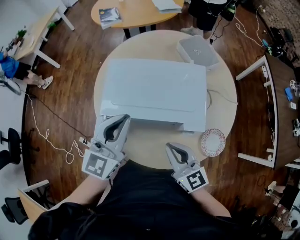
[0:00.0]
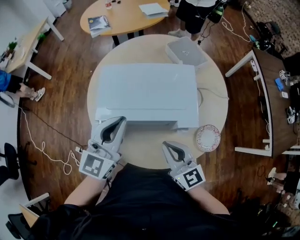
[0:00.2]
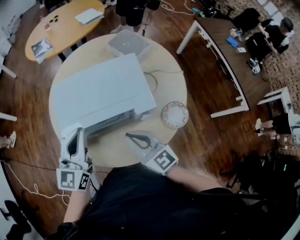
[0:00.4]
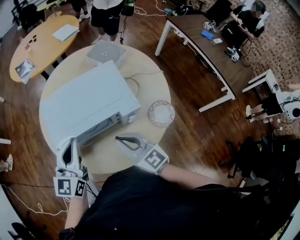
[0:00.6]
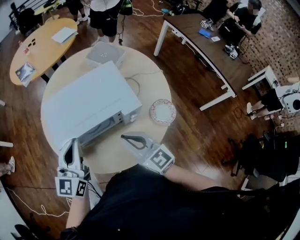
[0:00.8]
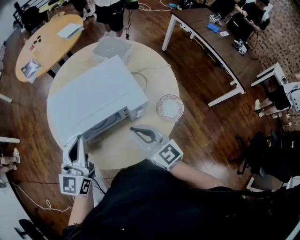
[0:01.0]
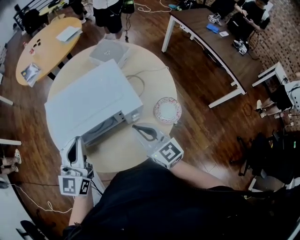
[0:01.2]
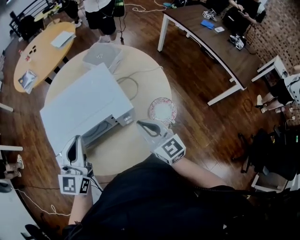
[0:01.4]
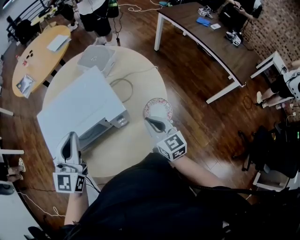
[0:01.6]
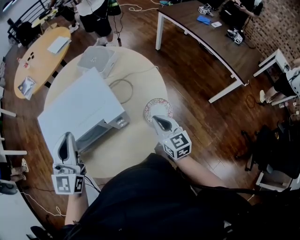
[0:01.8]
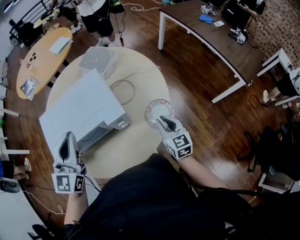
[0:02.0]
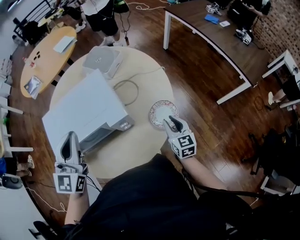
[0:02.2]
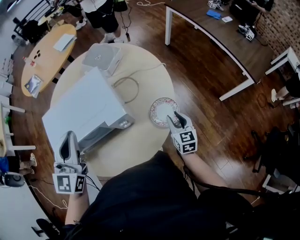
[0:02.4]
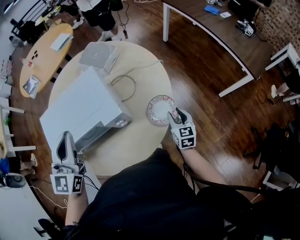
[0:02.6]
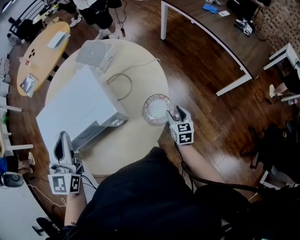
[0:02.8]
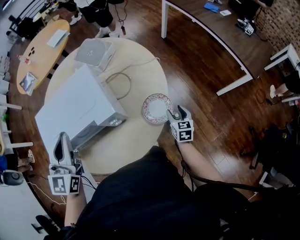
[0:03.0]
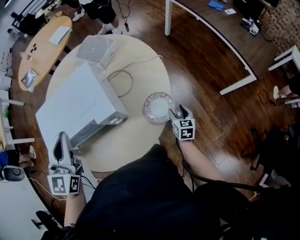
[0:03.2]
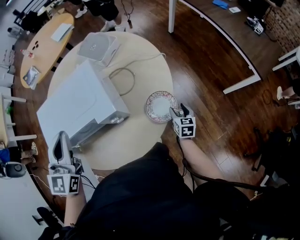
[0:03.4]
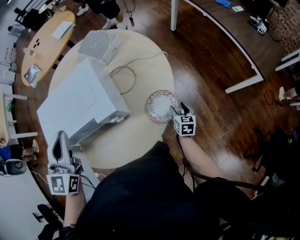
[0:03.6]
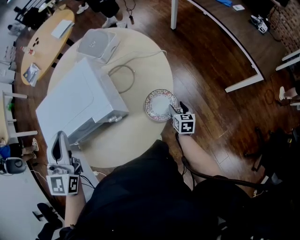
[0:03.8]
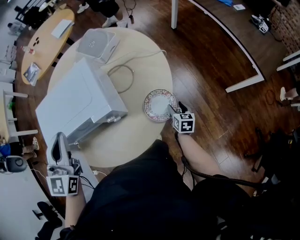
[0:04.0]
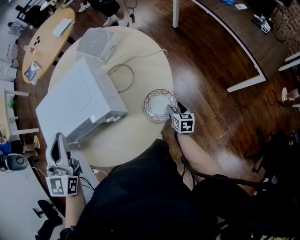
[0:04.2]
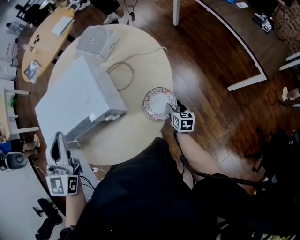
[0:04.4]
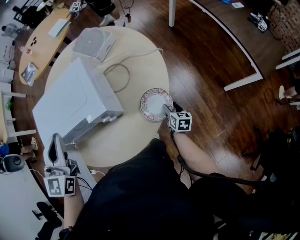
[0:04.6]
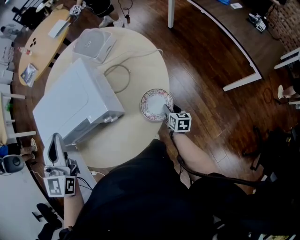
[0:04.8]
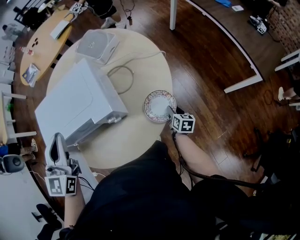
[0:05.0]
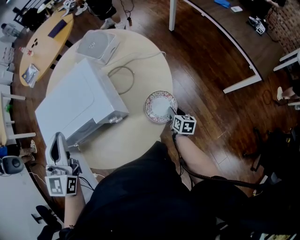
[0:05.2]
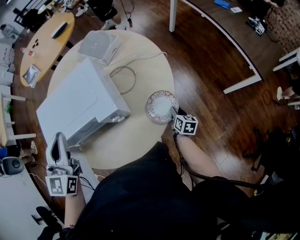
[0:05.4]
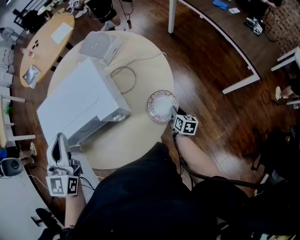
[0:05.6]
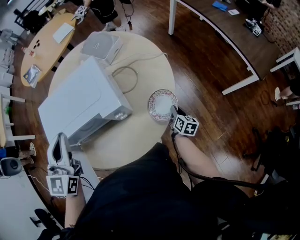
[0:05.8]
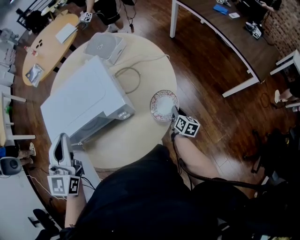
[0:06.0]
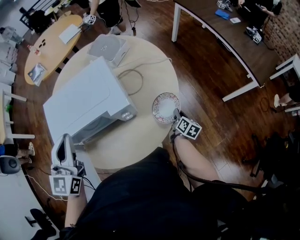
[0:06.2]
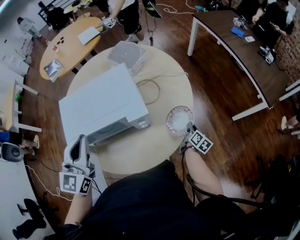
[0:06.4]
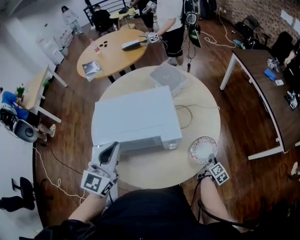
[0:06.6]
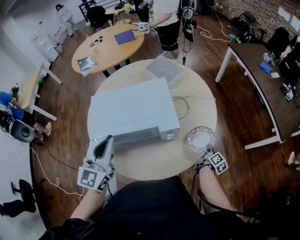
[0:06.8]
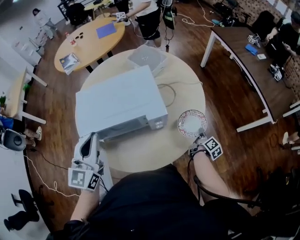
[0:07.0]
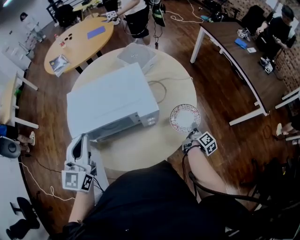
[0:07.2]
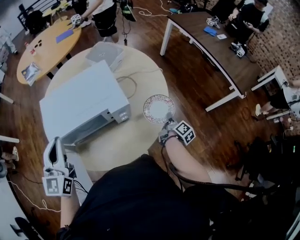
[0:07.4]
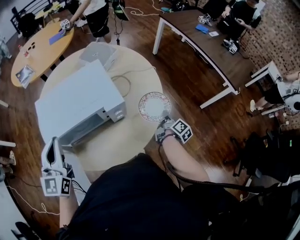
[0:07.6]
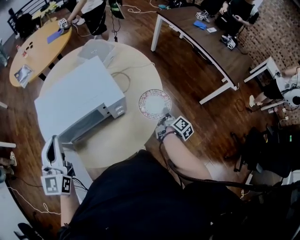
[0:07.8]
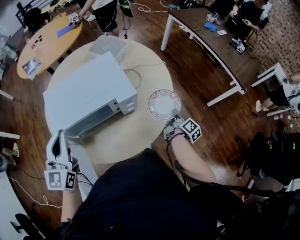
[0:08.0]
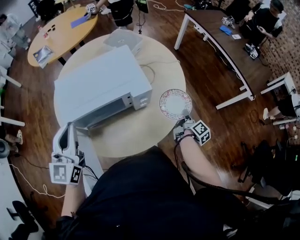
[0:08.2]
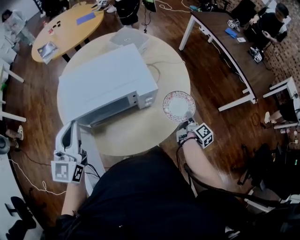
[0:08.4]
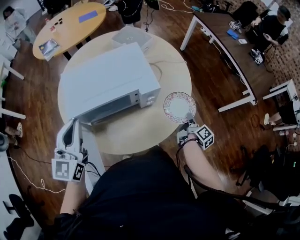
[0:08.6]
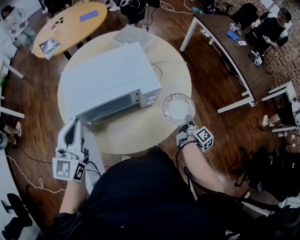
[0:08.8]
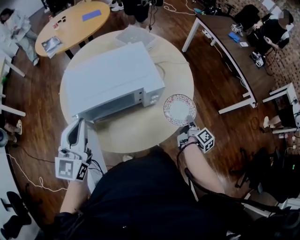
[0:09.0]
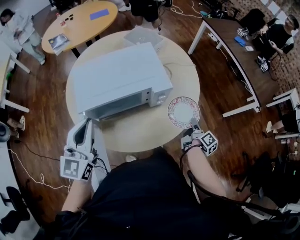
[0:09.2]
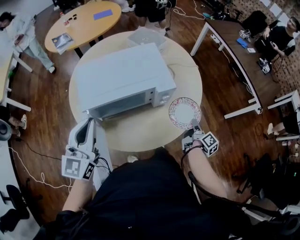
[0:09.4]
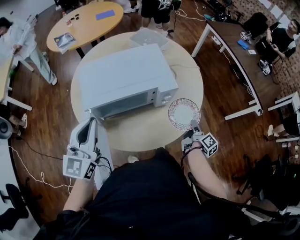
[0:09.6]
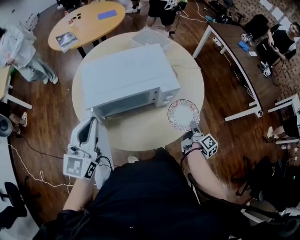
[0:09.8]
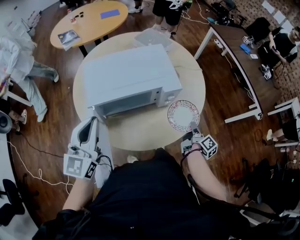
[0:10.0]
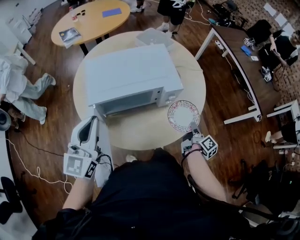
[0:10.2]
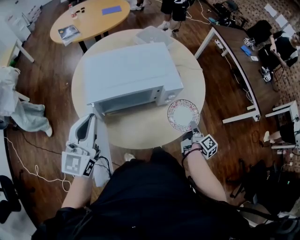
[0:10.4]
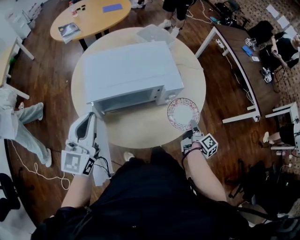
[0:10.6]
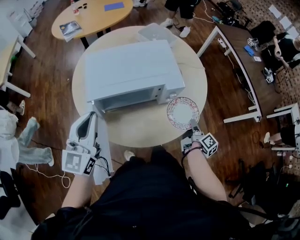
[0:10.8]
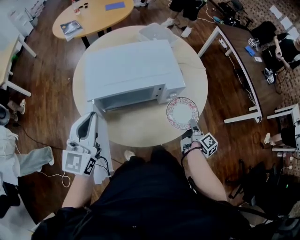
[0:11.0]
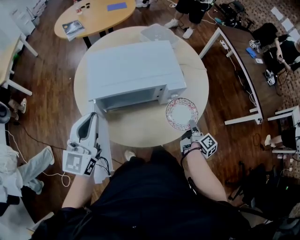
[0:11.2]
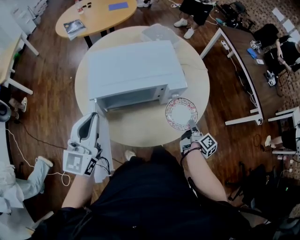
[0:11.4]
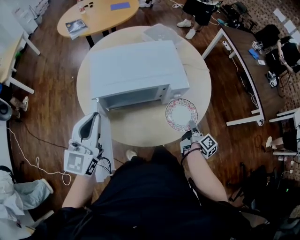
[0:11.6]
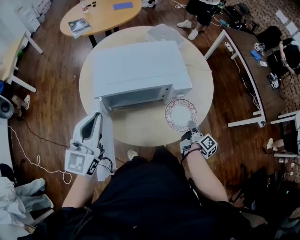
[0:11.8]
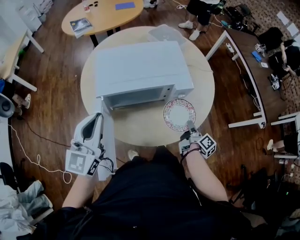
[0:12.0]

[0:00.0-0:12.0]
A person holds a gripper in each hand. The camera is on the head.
0.0 to 1.6 s: The left gripper shifts by roughly 5 cm, while the right gripper ends up roughly 20 cm from where it was, and changes its angle by some 40 degrees.
1.6 to 3.0 s: The right gripper shifts some 25 cm downward and to the right, changes its angle by roughly 30 degrees, and opens up.
3.0 to 4.4 s: The right gripper heads downward, covering roughly 5 cm.
4.4 to 6.0 s: The left gripper is displaced to the left by approximately 5 cm. The right gripper changes place by approximately 5 cm, swivels some 20 degrees, and closes its fingers.
6.0 to 7.6 s: The right gripper goes some 5 cm upward, and changes its angle by about 40 degrees; the left gripper shifts approximately 5 cm to the left.
7.6 to 9.0 s: The right gripper is displaced backward by roughly 5 cm.
9.0 to 10.4 s: The grippers move only a little.
10.4 to 12.0 s: The right gripper travels to the left by approximately 5 cm.

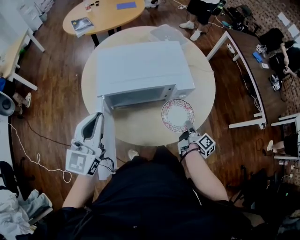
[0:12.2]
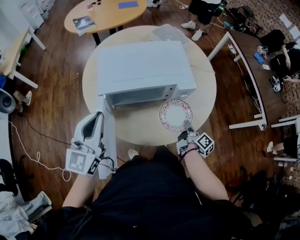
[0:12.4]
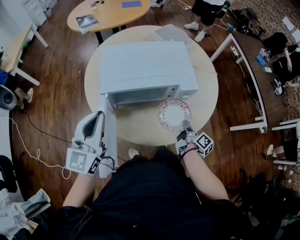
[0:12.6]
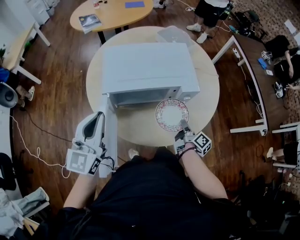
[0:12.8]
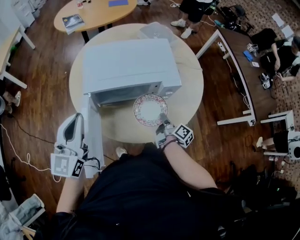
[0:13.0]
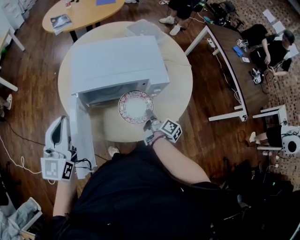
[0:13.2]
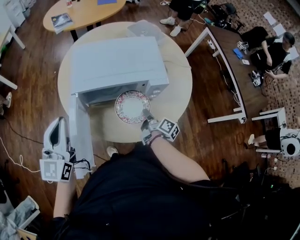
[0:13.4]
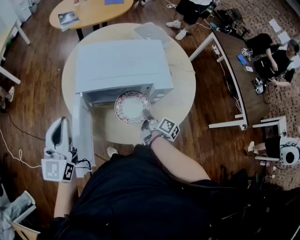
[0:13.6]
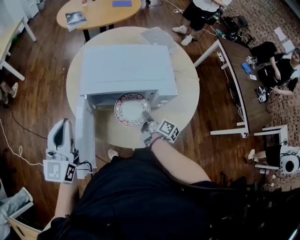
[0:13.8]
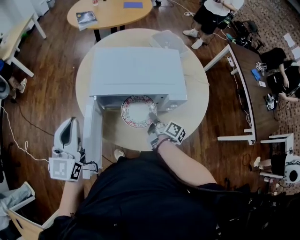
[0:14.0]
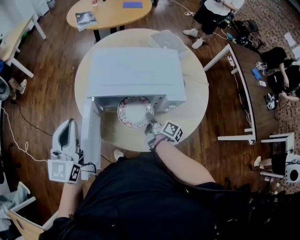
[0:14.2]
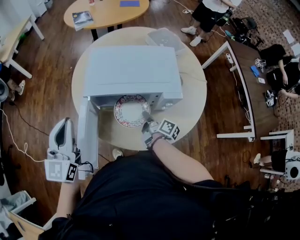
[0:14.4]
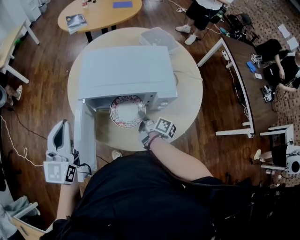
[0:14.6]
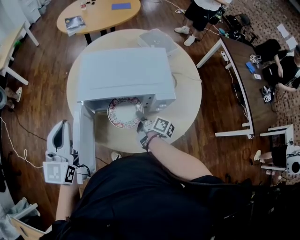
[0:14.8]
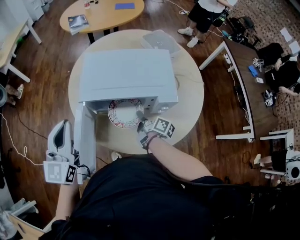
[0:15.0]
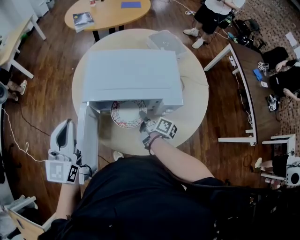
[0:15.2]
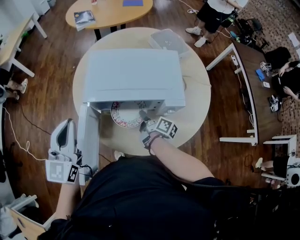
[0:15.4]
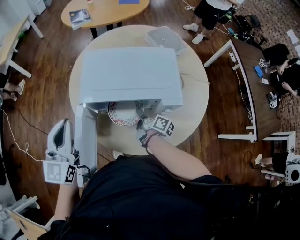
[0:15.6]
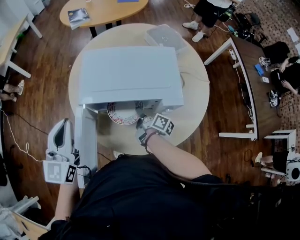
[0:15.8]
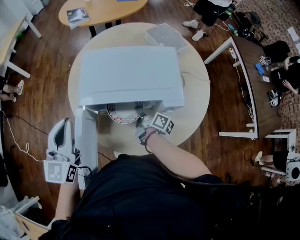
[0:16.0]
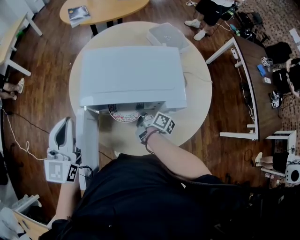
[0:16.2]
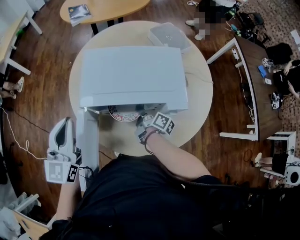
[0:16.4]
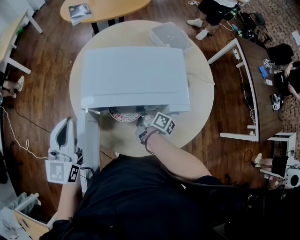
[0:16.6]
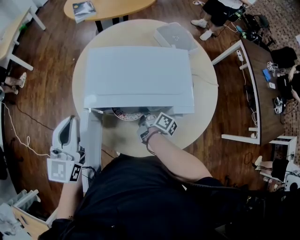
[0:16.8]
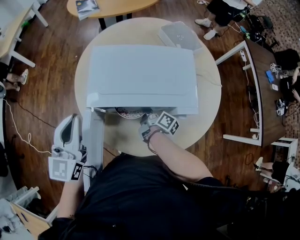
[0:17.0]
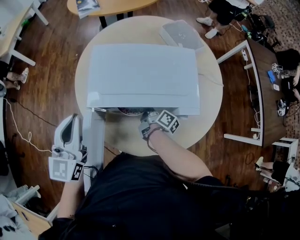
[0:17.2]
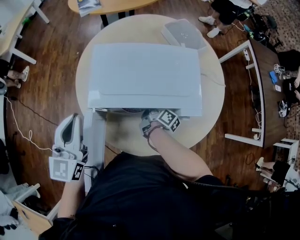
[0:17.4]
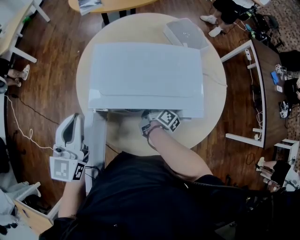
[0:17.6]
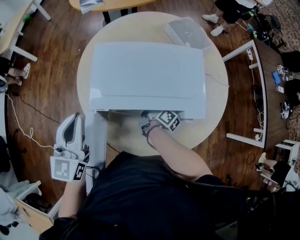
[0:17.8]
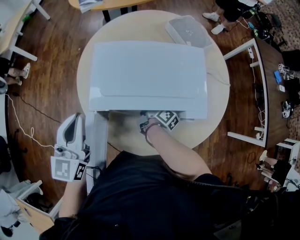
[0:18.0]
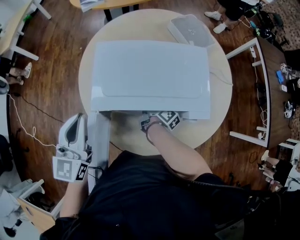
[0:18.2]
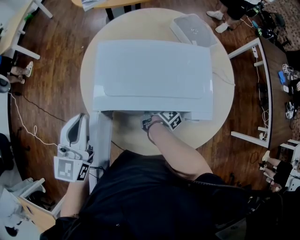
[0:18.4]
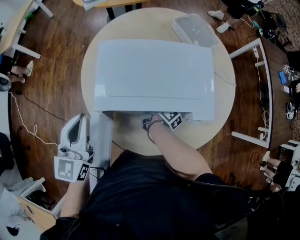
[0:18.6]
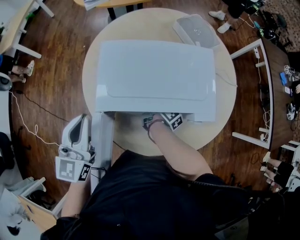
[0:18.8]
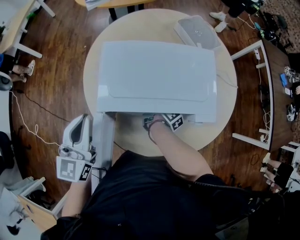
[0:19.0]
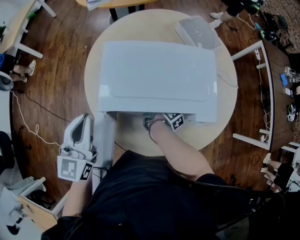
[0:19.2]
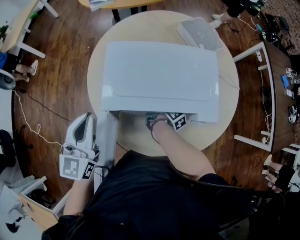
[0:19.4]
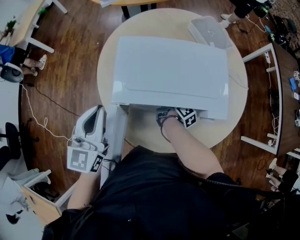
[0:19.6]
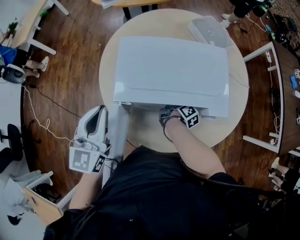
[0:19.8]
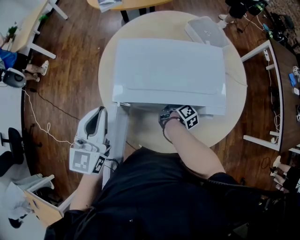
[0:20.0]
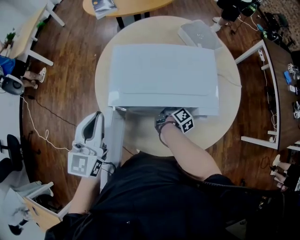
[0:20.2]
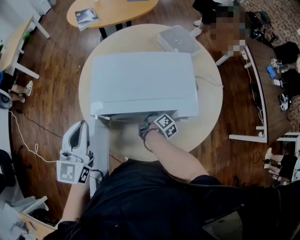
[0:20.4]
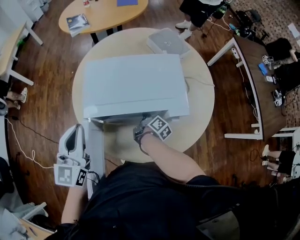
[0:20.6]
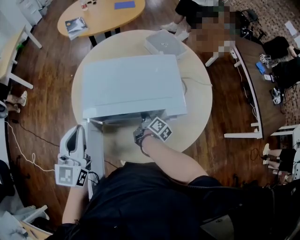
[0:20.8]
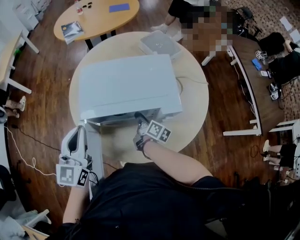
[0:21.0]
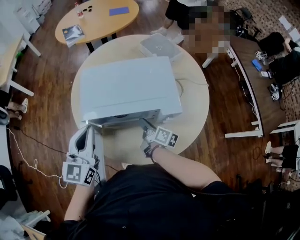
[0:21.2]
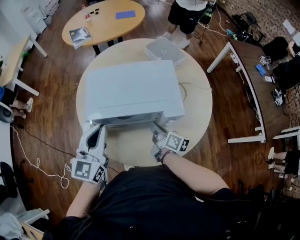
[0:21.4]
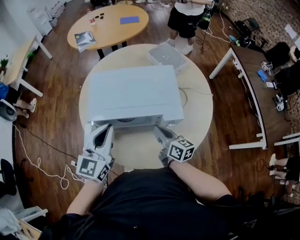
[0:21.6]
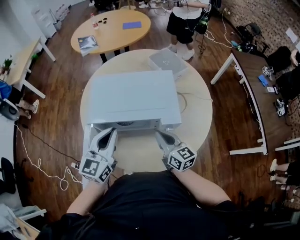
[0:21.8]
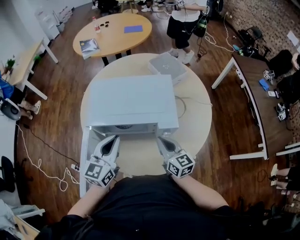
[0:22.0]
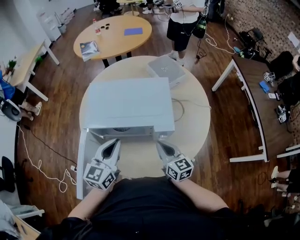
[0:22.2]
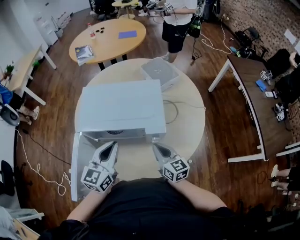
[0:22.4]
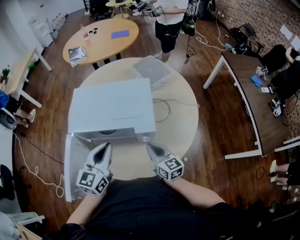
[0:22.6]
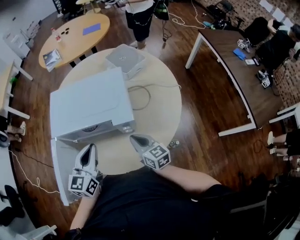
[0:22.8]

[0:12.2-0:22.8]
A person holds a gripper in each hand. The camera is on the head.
12.2 to 13.8 s: The right gripper is displaced to the left and forward by approximately 15 cm, and rotates roughly 20 degrees. Meanwhile the left gripper ends up about 5 cm from where it was.
13.8 to 15.2 s: The right gripper changes place by some 5 cm.
15.2 to 16.8 s: The grippers both shift forward by about 5 cm.
16.8 to 18.2 s: The right gripper moves roughly 5 cm.
18.2 to 19.8 s: The grippers move only a little.
19.8 to 21.2 s: The left gripper moves to the right, roughly 10 cm, while the right gripper moves backward and upward, some 10 cm, and rotates about 30 degrees.
21.2 to 22.8 s: The left gripper travels to the right by approximately 15 cm; the right gripper heads to the right, covering about 10 cm, and rolls counterclockwise, seen from behind, by some 50 degrees.

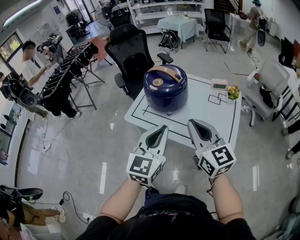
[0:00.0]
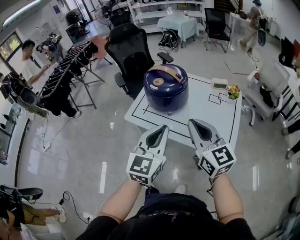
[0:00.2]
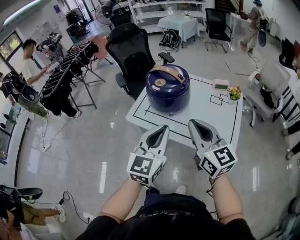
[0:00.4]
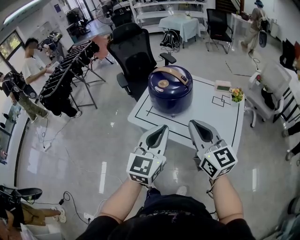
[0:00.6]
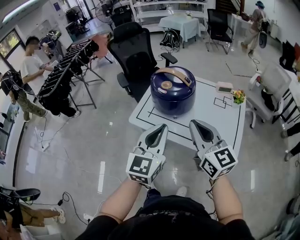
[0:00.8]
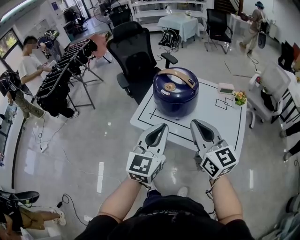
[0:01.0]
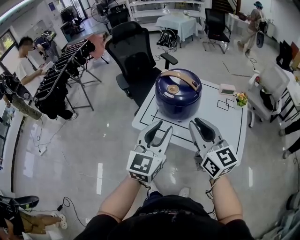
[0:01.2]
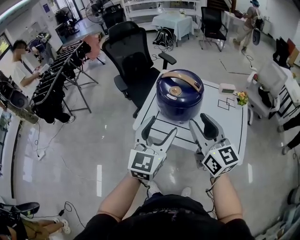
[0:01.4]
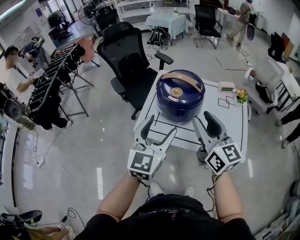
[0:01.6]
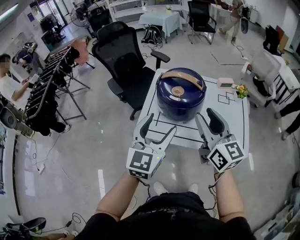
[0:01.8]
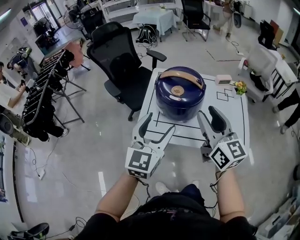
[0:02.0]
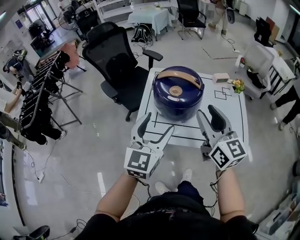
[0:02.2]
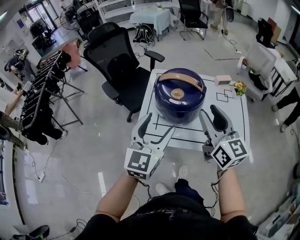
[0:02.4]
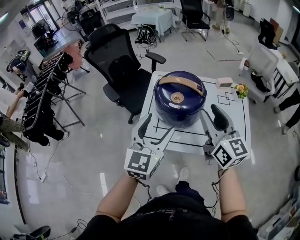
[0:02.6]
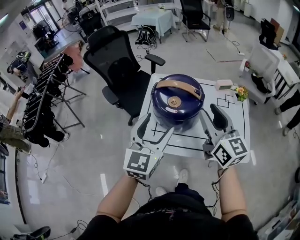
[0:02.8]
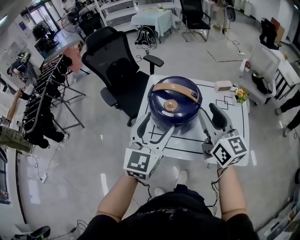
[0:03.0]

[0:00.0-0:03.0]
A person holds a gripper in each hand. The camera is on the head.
0.0 to 1.6 s: The right gripper moves forward and to the left, about 15 cm, and opens its fingers. The left gripper shifts approximately 20 cm to the left and forward, and opens up.
1.6 to 3.0 s: The two grippers go about 10 cm forward.
